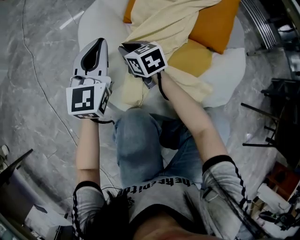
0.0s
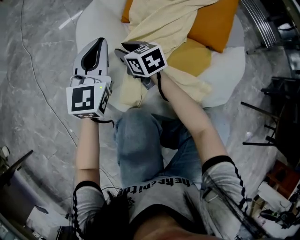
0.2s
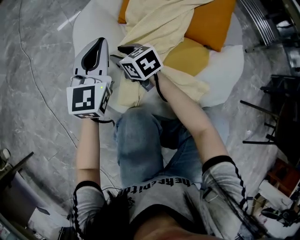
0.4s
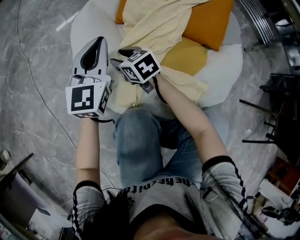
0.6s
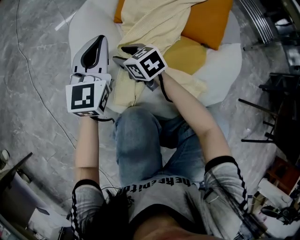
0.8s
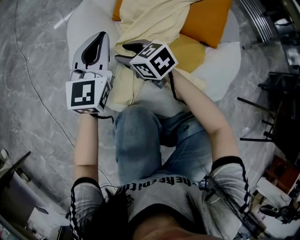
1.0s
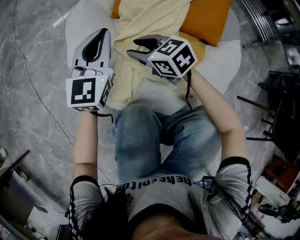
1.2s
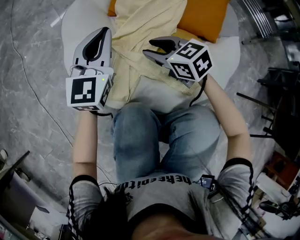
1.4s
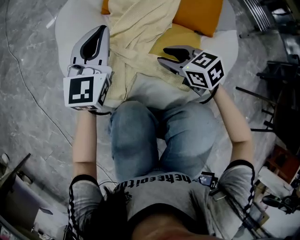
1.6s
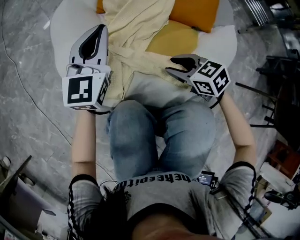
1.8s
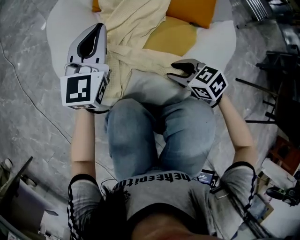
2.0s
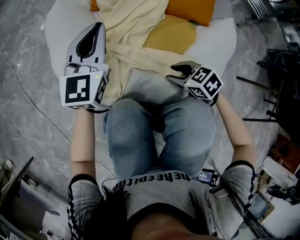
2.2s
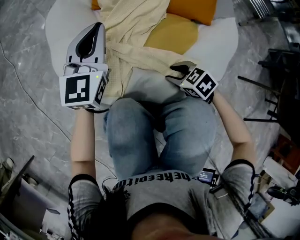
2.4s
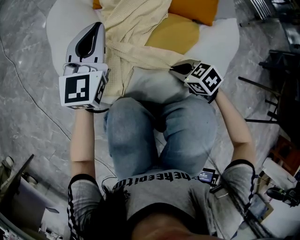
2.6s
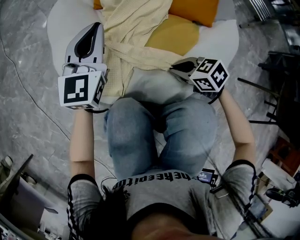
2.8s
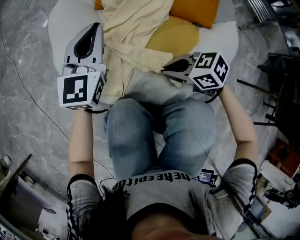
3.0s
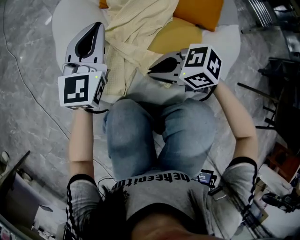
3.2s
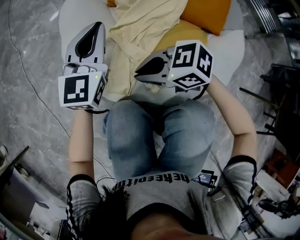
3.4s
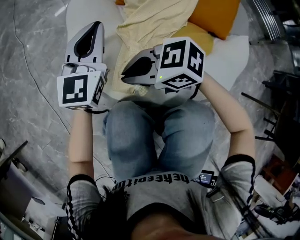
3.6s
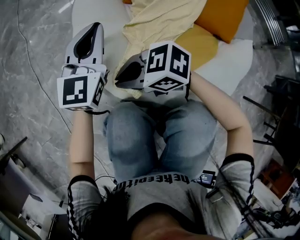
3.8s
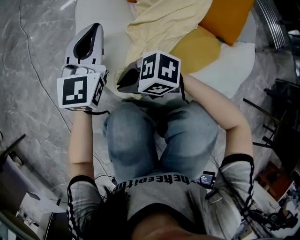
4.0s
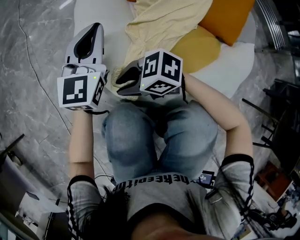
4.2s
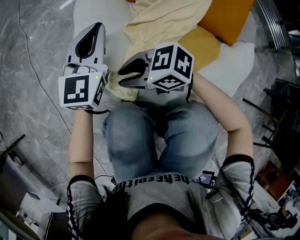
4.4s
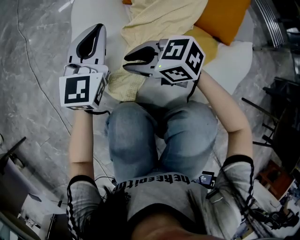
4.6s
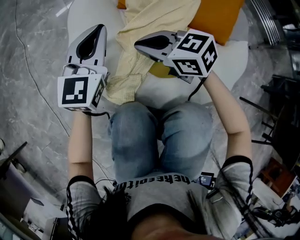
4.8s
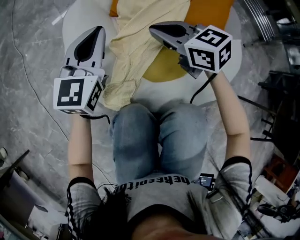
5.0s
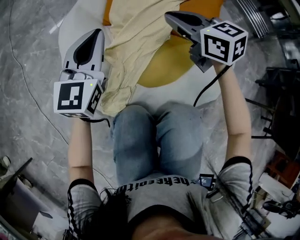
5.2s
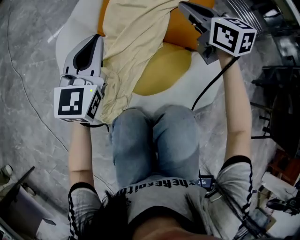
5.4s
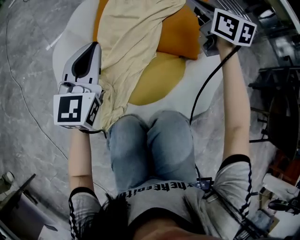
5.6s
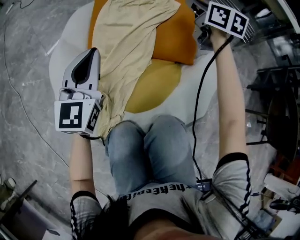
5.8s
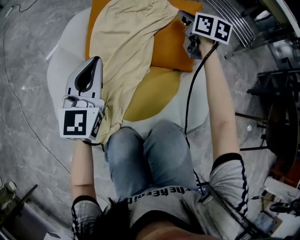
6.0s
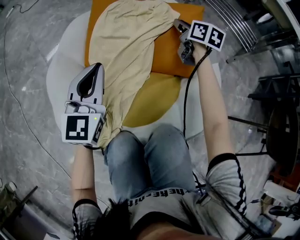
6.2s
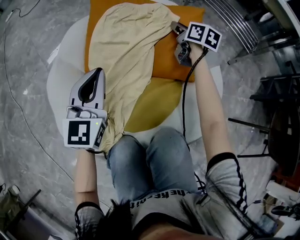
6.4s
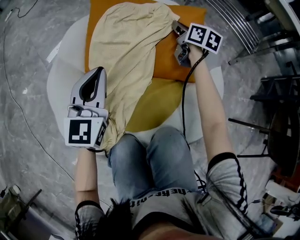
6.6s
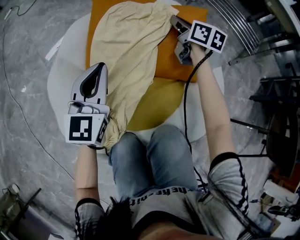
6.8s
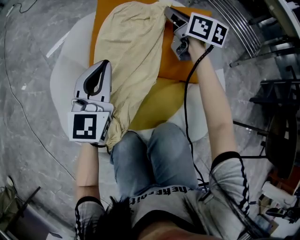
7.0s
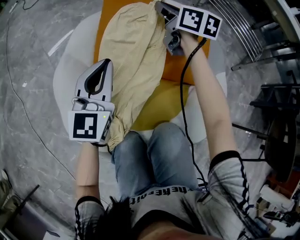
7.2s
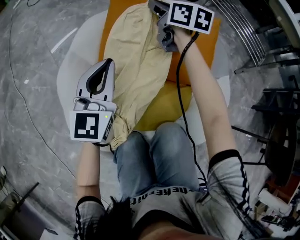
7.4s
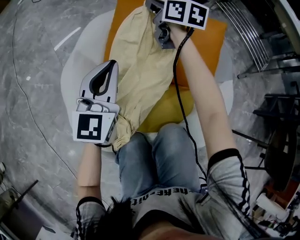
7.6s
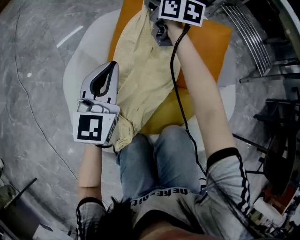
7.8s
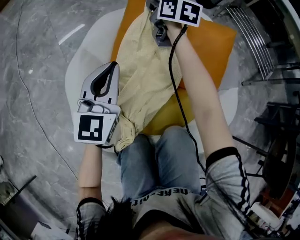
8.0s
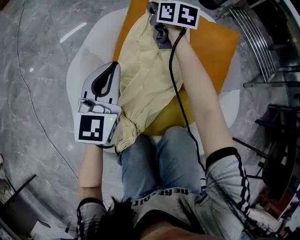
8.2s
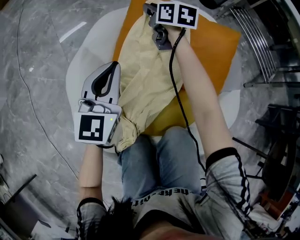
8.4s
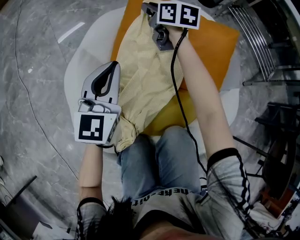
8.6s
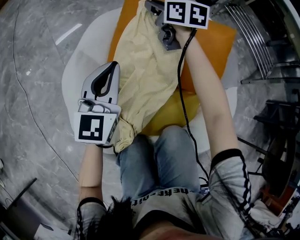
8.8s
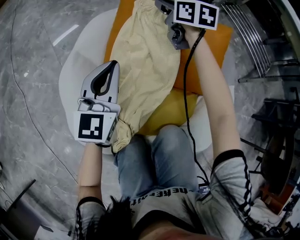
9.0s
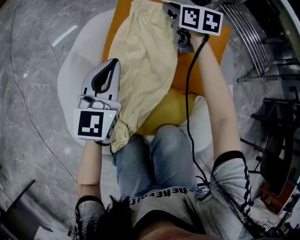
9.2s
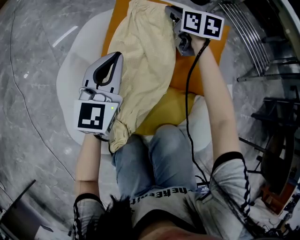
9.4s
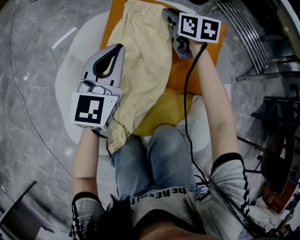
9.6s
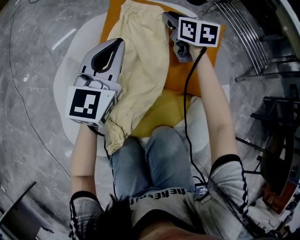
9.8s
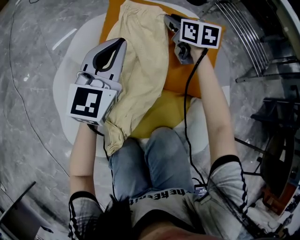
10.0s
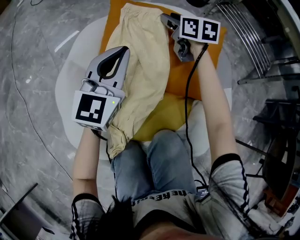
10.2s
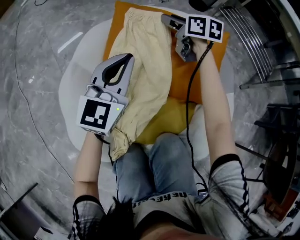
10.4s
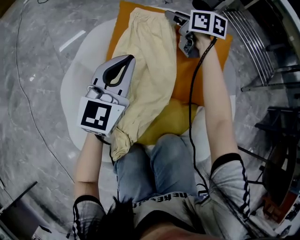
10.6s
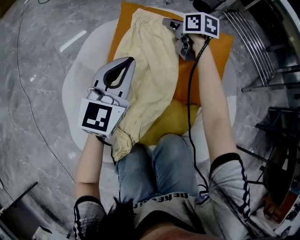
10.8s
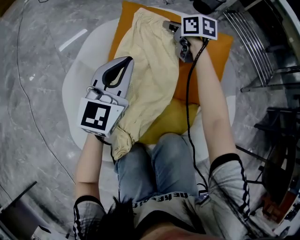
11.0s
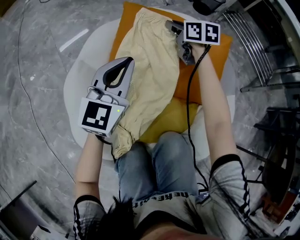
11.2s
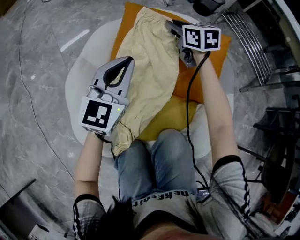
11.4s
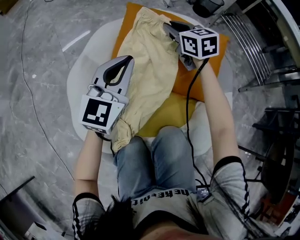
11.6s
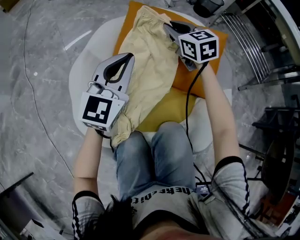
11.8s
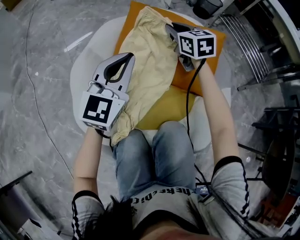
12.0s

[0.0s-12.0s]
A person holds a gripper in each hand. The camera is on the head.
0.0s to 1.6s: The left gripper travels to the right by some 5 cm. Meanwhile the right gripper moves to the right and backward, approximately 20 cm, and opens its fingers.
1.6s to 3.0s: The right gripper moves backward, some 5 cm, rotates about 20 degrees, and closes its fingers.
3.0s to 4.4s: The left gripper shifts by about 10 cm. The right gripper ends up about 20 cm from where it was, and changes its angle by about 30 degrees.
4.4s to 6.0s: The right gripper moves roughly 60 cm, rotates some 90 degrees, and closes its fingers; the left gripper moves about 20 cm.
6.0s to 7.6s: The right gripper shifts about 25 cm to the left and forward; the left gripper moves forward, roughly 5 cm.
9.0s to 10.4s: The two grippers go some 5 cm to the right. The right gripper opens up.
10.4s to 12.0s: The right gripper moves backward and to the left, about 15 cm, changes its angle by some 30 degrees, and closes. Meanwhile the left gripper travels backward by roughly 10 cm.

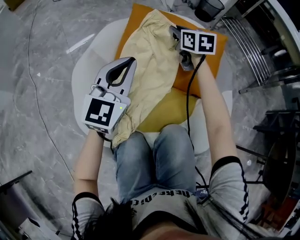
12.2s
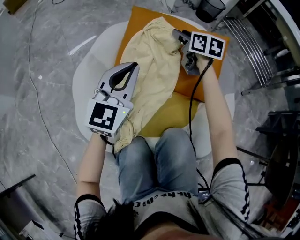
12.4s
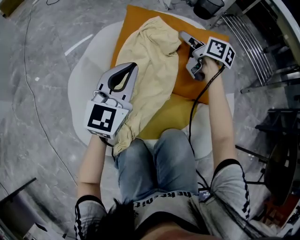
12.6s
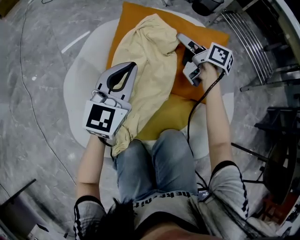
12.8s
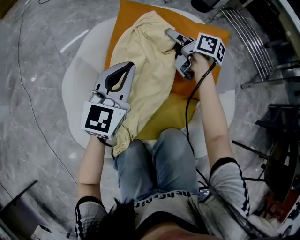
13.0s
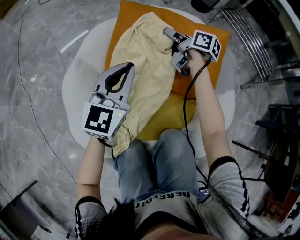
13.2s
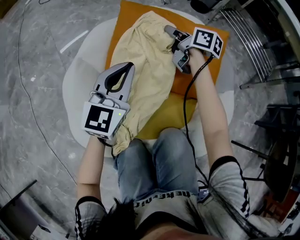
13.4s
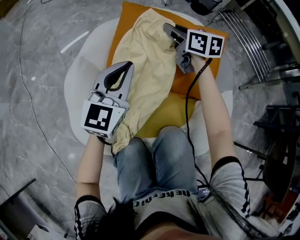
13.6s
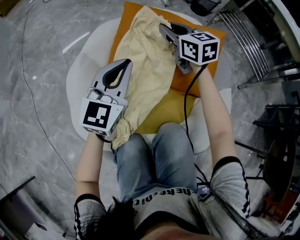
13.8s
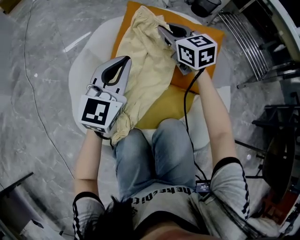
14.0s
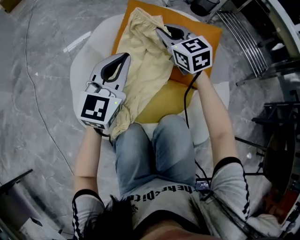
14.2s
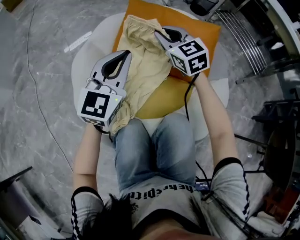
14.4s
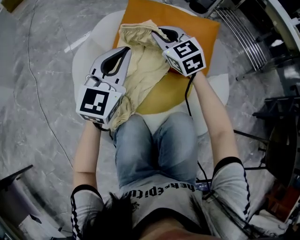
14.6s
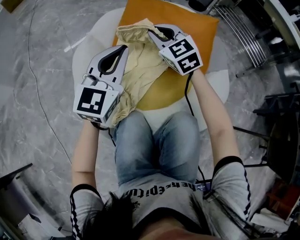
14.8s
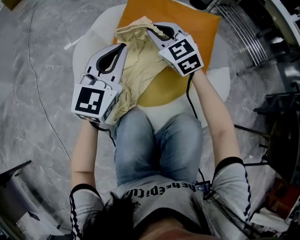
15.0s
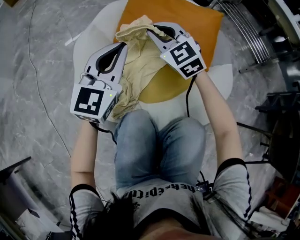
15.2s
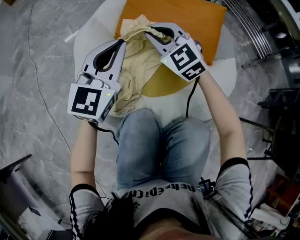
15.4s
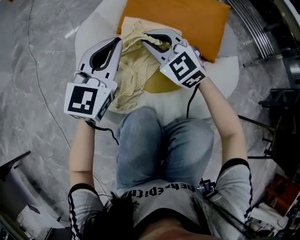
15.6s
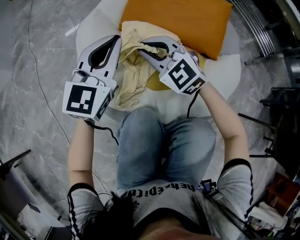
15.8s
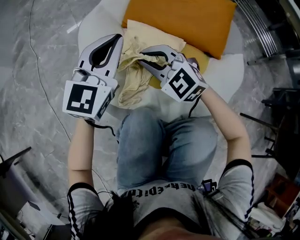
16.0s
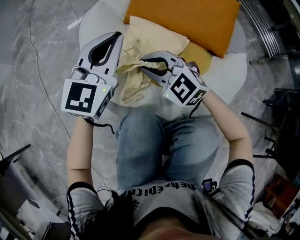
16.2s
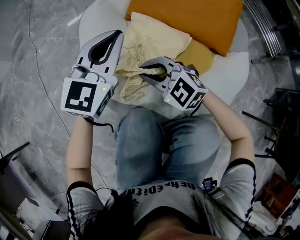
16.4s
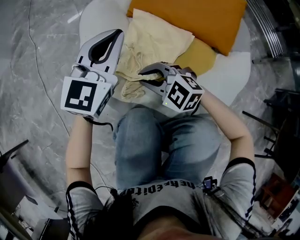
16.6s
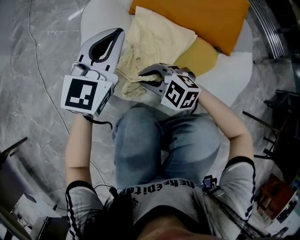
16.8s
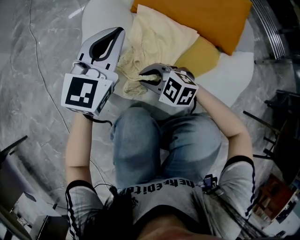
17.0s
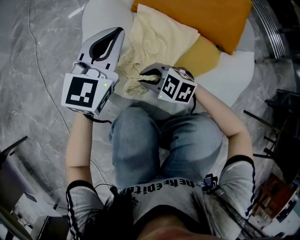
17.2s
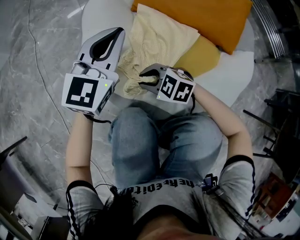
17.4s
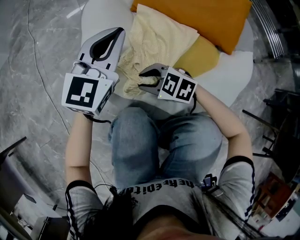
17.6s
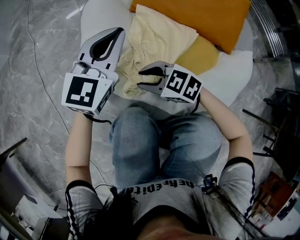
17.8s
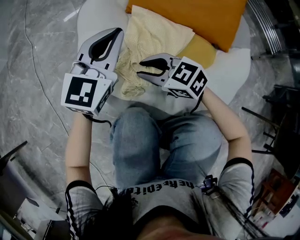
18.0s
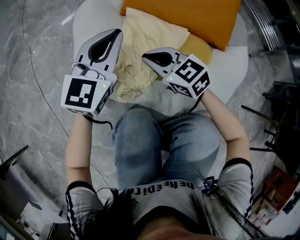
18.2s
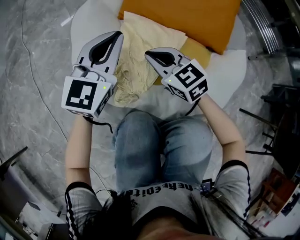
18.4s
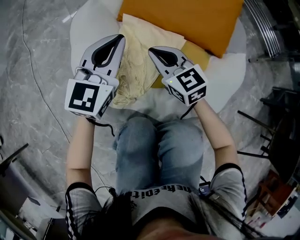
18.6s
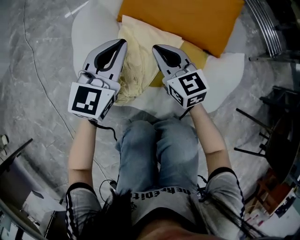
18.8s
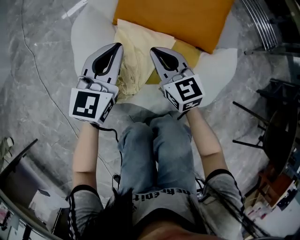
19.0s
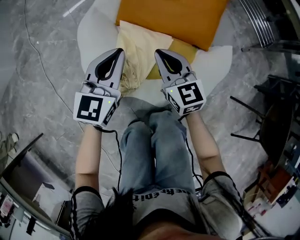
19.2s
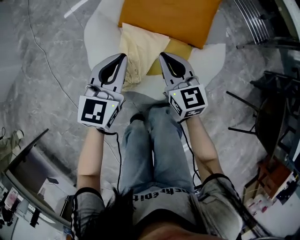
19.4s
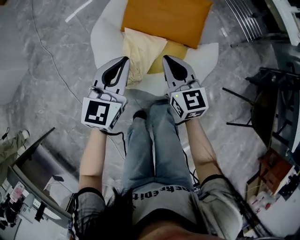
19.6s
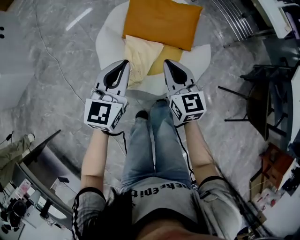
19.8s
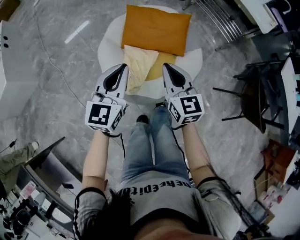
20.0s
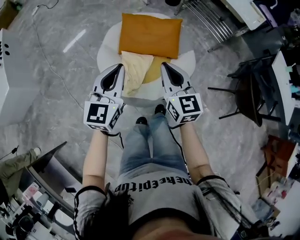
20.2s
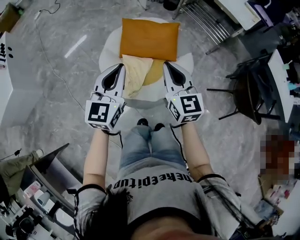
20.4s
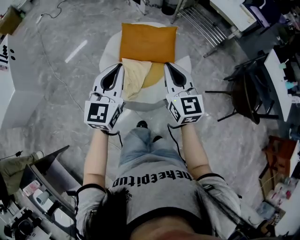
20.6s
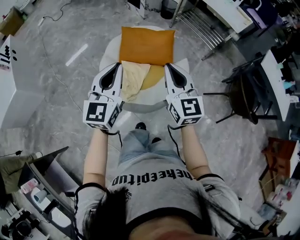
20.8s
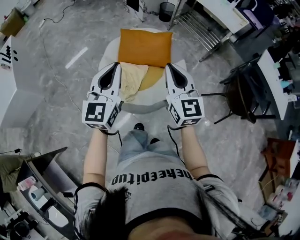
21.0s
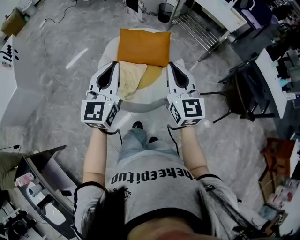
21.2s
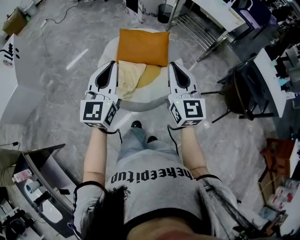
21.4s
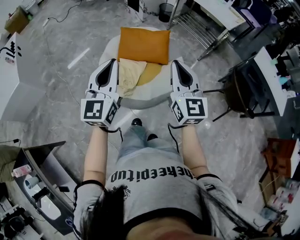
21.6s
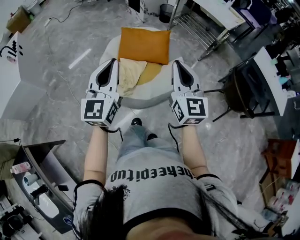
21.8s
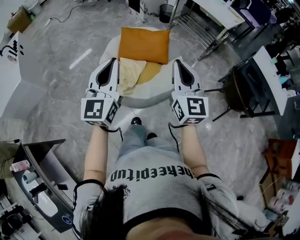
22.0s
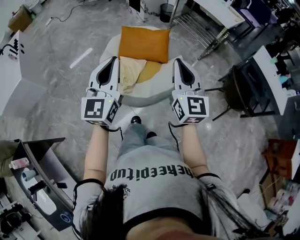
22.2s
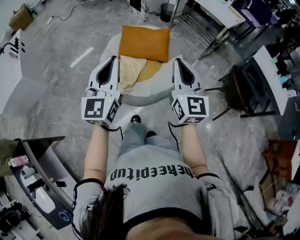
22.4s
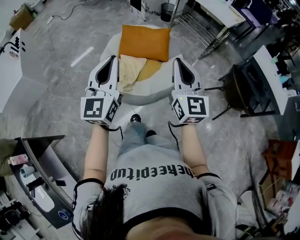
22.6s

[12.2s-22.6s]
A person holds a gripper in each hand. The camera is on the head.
12.2s to 13.6s: The left gripper changes place by roughly 5 cm. Meanwhile the right gripper reaches some 5 cm downward, then returns, and opens, then closes again.
13.6s to 15.2s: The left gripper goes roughly 15 cm backward. The right gripper shifts some 25 cm backward and to the left, and twists about 50 degrees counterclockwise, seen from behind.
15.2s to 16.6s: The right gripper moves backward, downward and to the left, about 30 cm, and changes its angle by approximately 40 degrees, while the left gripper travels to the left and downward by approximately 10 cm.
16.6s to 18.2s: The right gripper travels forward by approximately 5 cm, reaches approximately 5 cm downward, then returns, and rotates roughly 30 degrees.
18.2s to 19.6s: The two grippers go approximately 30 cm upward. The right gripper rotates roughly 40 degrees.
19.6s to 21.2s: The grippers both shift upward and backward by some 40 cm. The right gripper turns by approximately 30 degrees.
21.2s to 22.6s: The left gripper goes roughly 10 cm backward; the right gripper moves backward and to the right, some 10 cm.

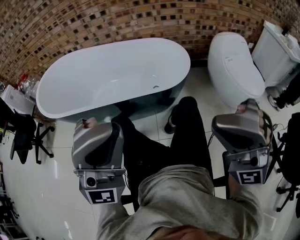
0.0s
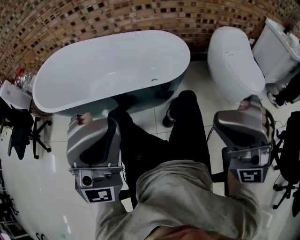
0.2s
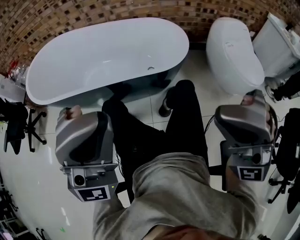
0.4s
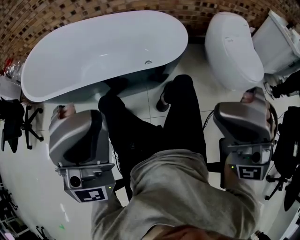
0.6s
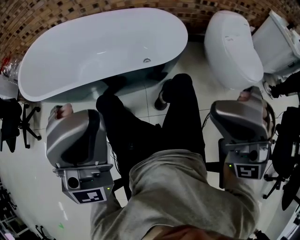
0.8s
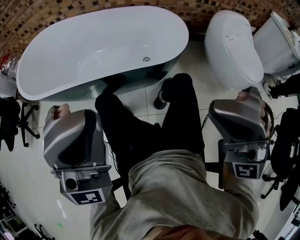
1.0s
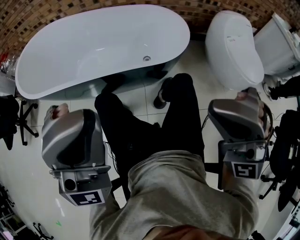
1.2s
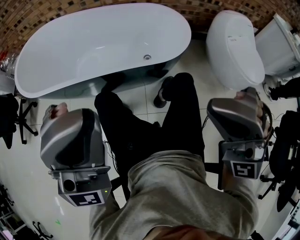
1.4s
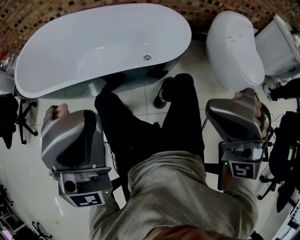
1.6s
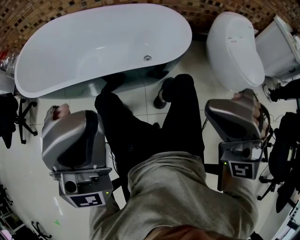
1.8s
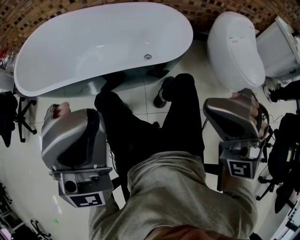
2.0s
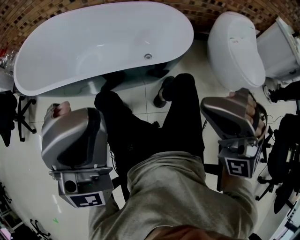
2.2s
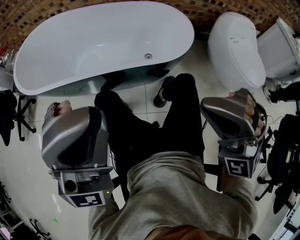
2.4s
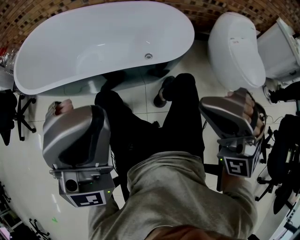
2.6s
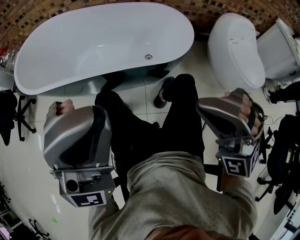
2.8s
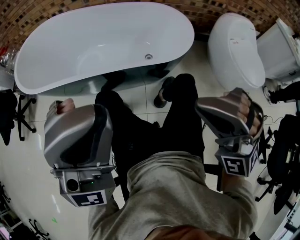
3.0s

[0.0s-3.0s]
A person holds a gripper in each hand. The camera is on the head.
0.0s to 1.6s: The left gripper moves forward, roughly 5 cm; the right gripper goes some 10 cm forward and downward.
1.6s to 3.0s: The grippers stay close to where they were, moving slightly.
